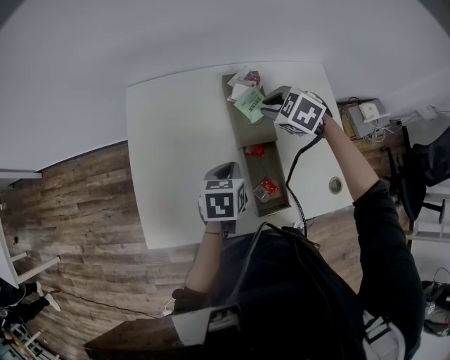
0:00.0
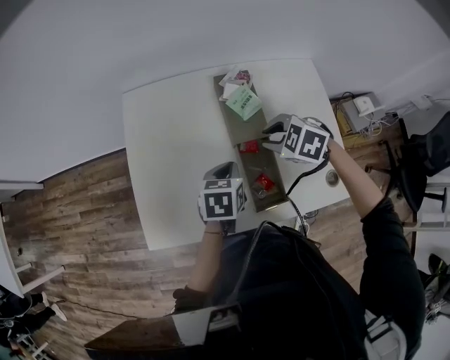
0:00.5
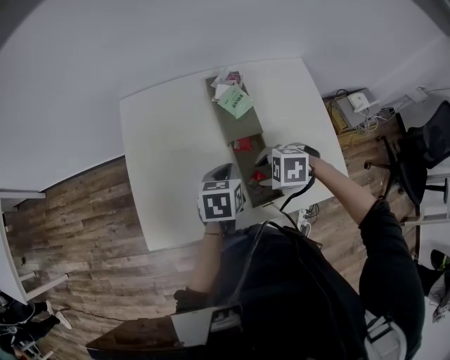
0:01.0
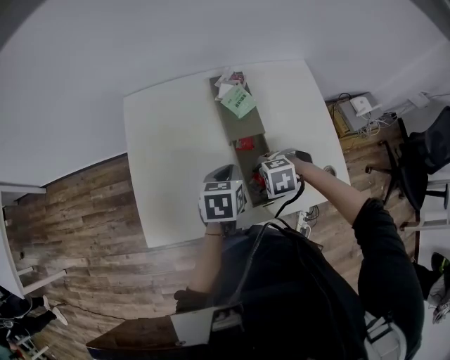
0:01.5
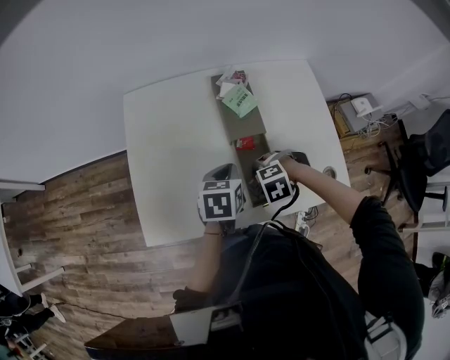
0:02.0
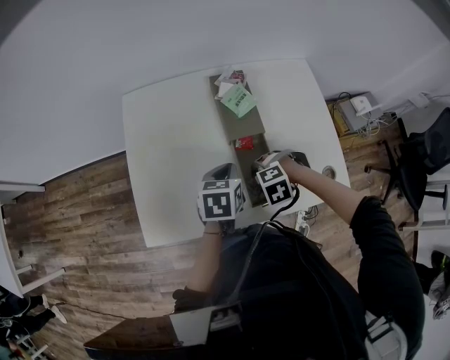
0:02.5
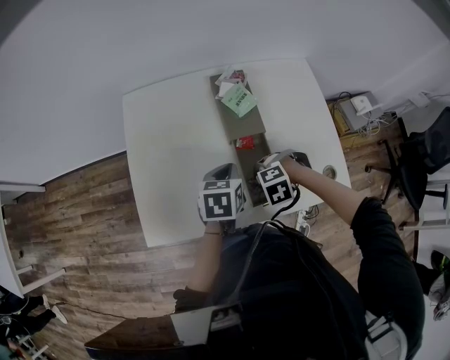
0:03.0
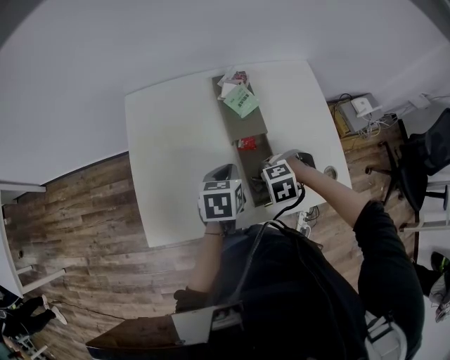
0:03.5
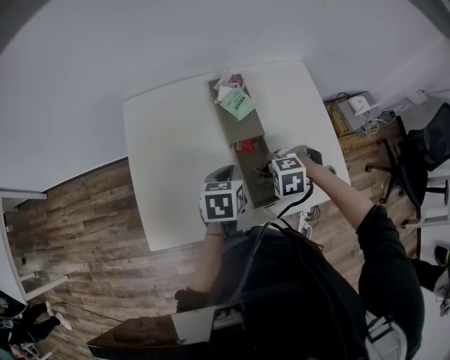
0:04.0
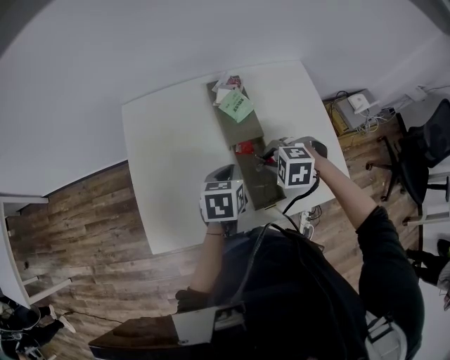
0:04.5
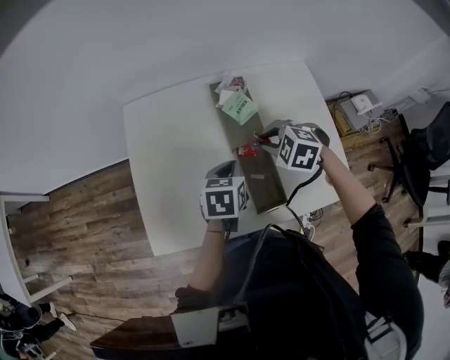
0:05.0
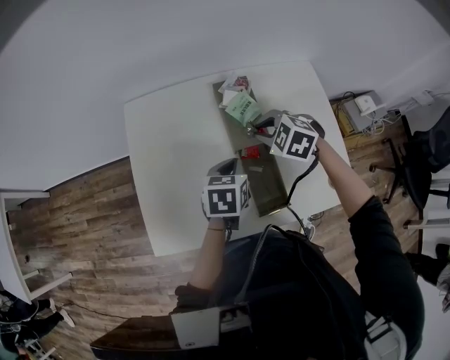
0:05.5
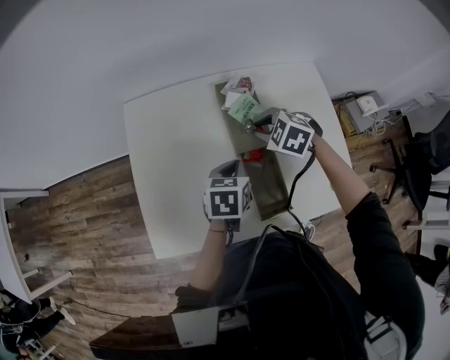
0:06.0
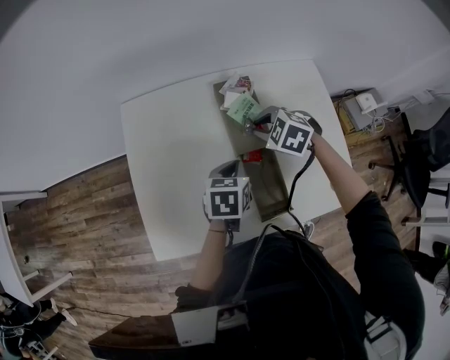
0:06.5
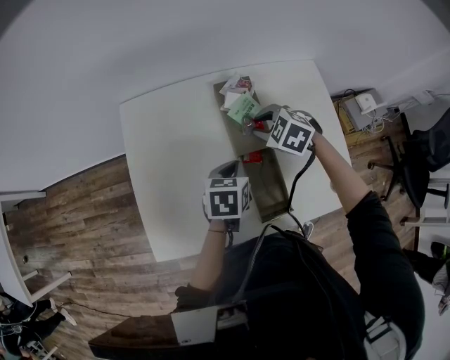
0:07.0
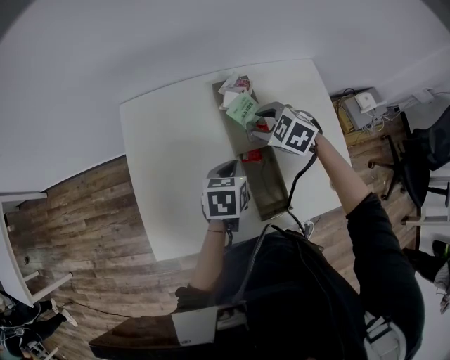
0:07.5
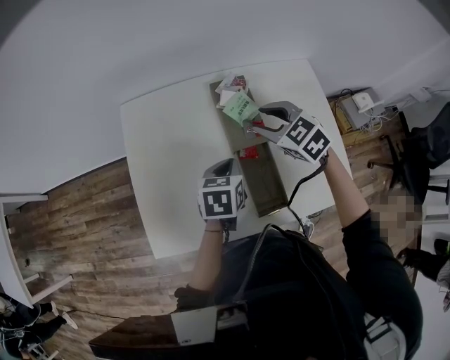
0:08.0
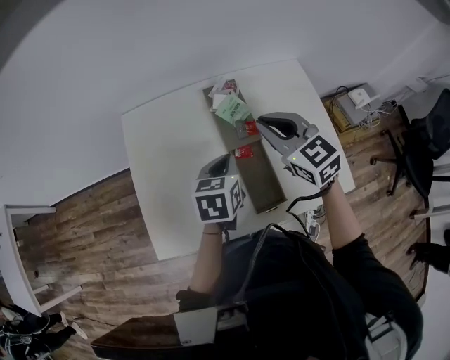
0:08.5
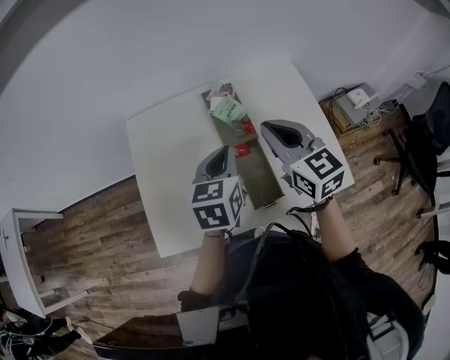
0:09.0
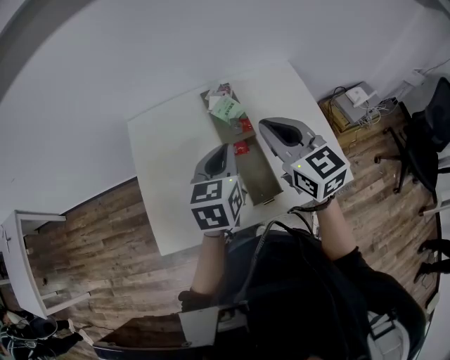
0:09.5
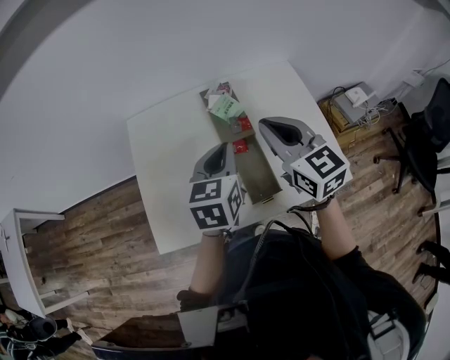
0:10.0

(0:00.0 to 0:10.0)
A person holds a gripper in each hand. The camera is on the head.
0:00.0 - 0:02.0: The right gripper changes place by roughly 30 cm, turns by about 40 degrees, and opens.
0:02.0 - 0:04.0: The right gripper moves roughly 5 cm, and closes.
0:04.0 - 0:06.0: The right gripper shifts by roughly 20 cm, and turns by about 30 degrees; the left gripper changes place by roughly 5 cm.
0:06.0 - 0:08.0: The right gripper is displaced upward by approximately 5 cm, turns by some 20 degrees, and opens up.
0:08.0 - 0:10.0: The right gripper shifts some 20 cm upward and backward, tilts its fingers roughly 30 degrees upward, and closes up; the left gripper heads upward, covering some 15 cm, and changes its angle by approximately 20 degrees.

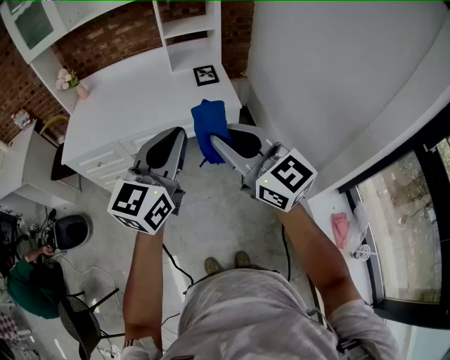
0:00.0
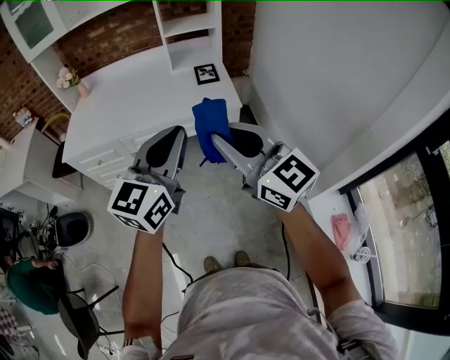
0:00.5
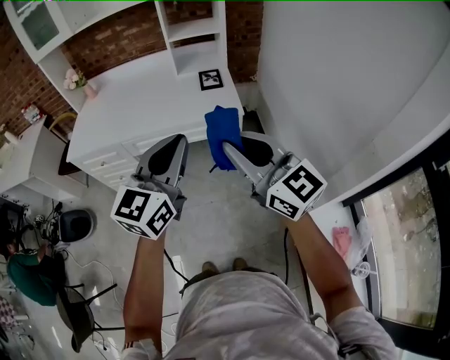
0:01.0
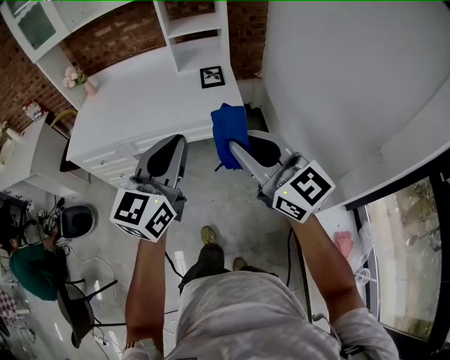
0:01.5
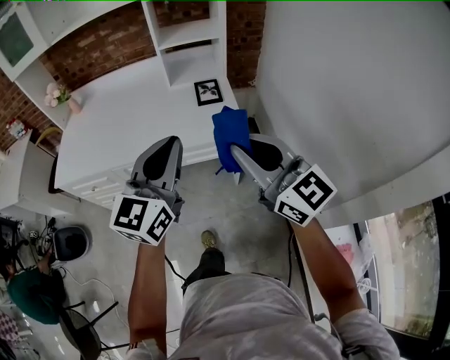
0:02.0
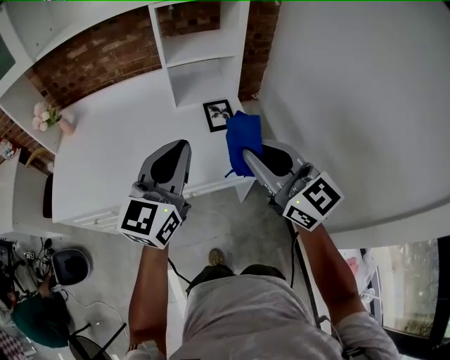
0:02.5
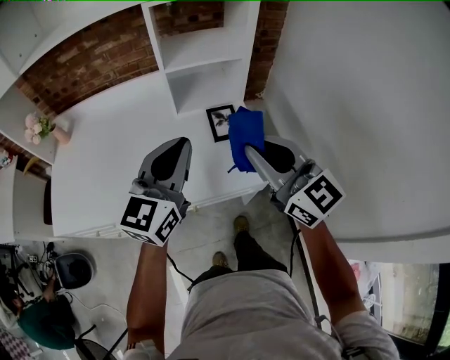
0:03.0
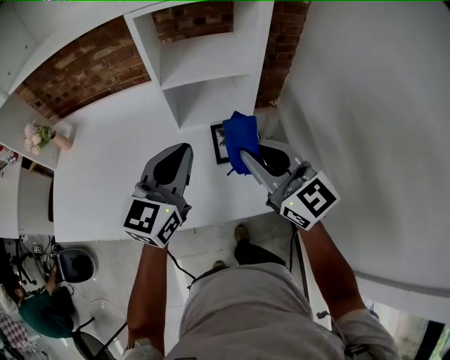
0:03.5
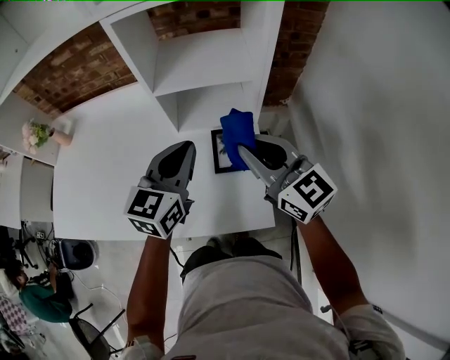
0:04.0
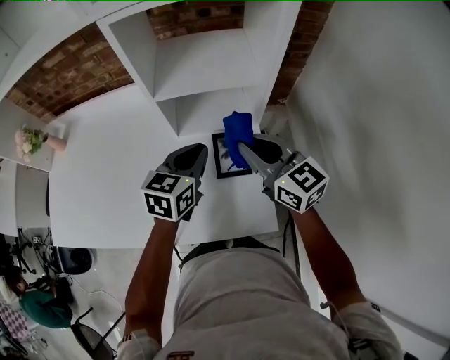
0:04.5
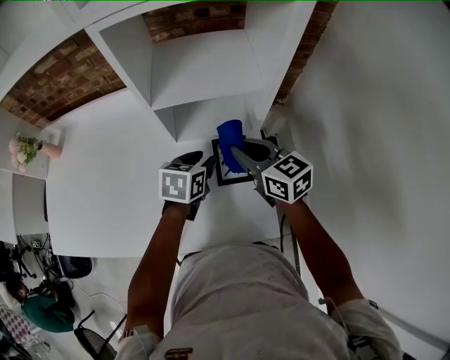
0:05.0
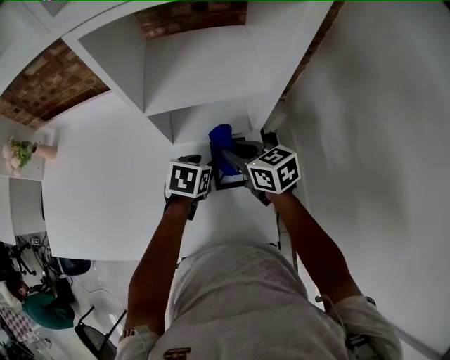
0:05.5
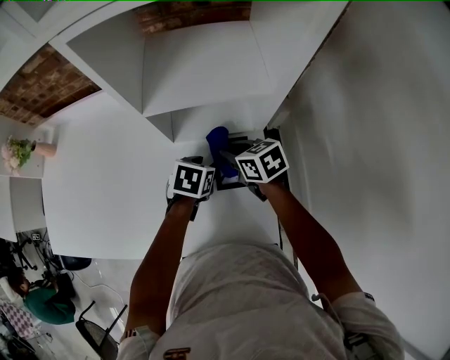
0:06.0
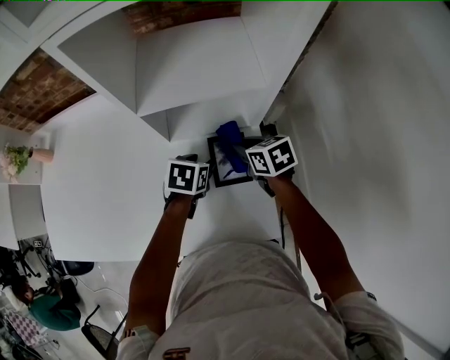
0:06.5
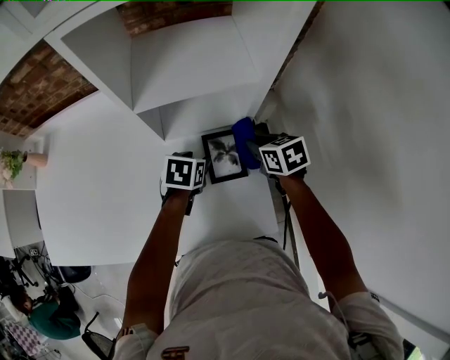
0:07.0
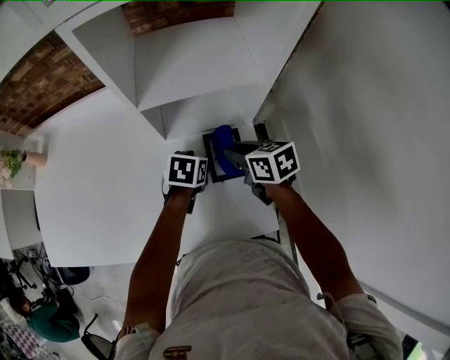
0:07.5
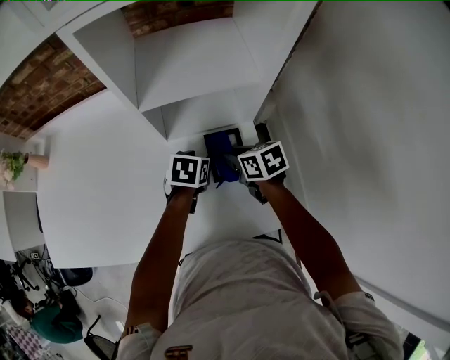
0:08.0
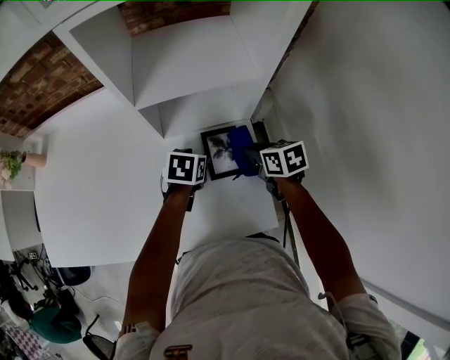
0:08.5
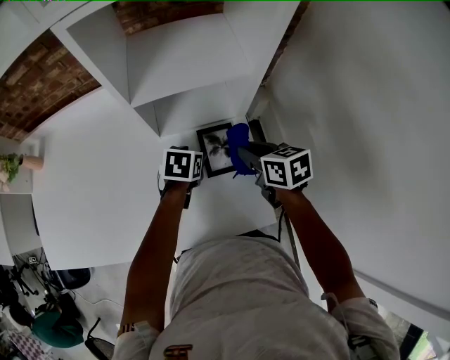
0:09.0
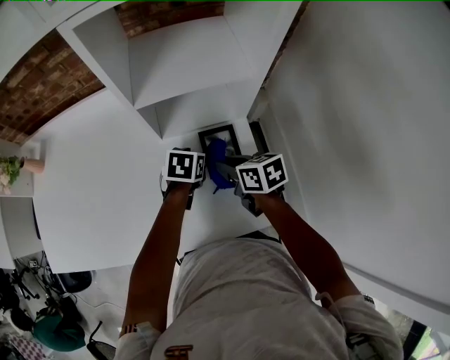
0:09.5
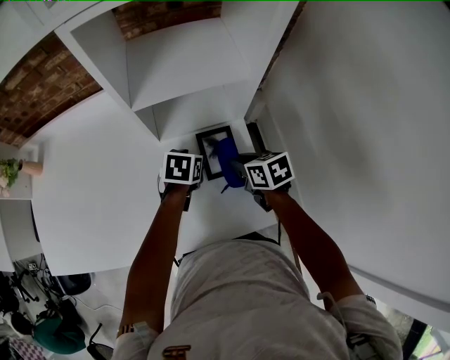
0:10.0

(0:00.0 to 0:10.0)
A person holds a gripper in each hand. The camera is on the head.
0:00.0 - 0:02.0: The right gripper heads forward and to the right, covering about 15 cm; the left gripper goes roughly 15 cm forward.
0:02.0 - 0:04.0: The pair of grippers is taken forward, about 40 cm.
0:04.0 - 0:06.0: The right gripper is displaced downward and forward by roughly 25 cm, and tilts its fingers about 40 degrees downward, while the left gripper heads downward, covering approximately 25 cm, angles its fingers downward, by some 50 degrees, and opens up.
0:06.0 - 0:08.0: The right gripper goes to the right and returns, approximately 10 cm each way.
0:08.0 - 0:10.0: The right gripper swings left and right, roughly 10 cm each way, with 2 reversals.

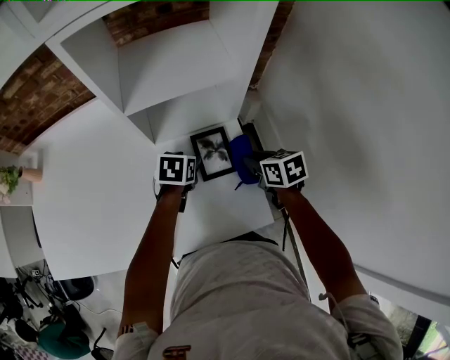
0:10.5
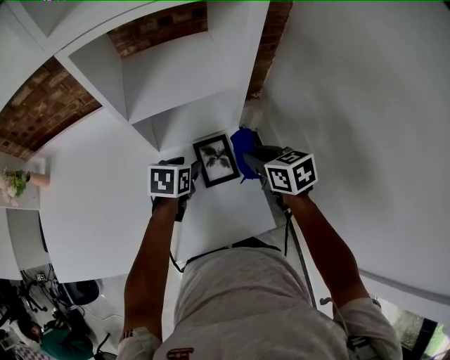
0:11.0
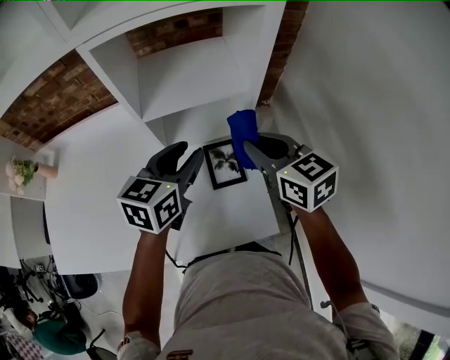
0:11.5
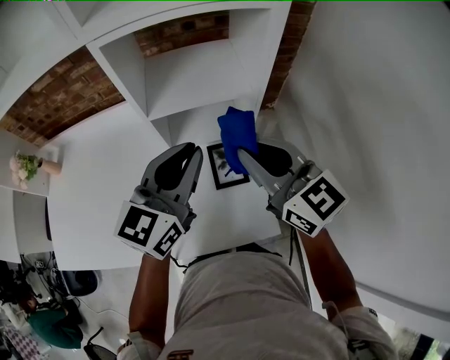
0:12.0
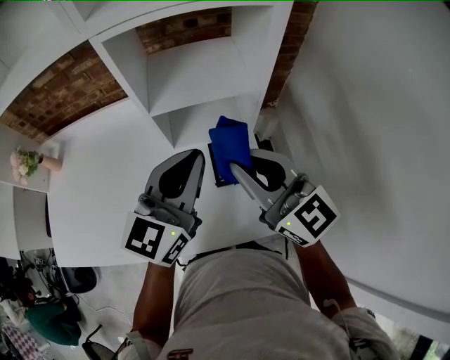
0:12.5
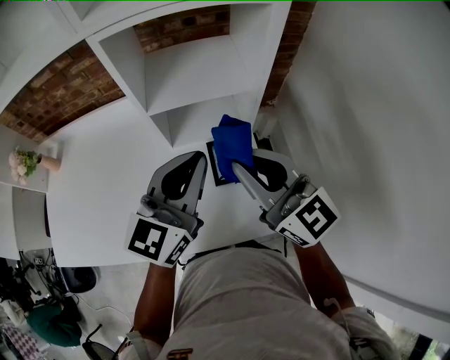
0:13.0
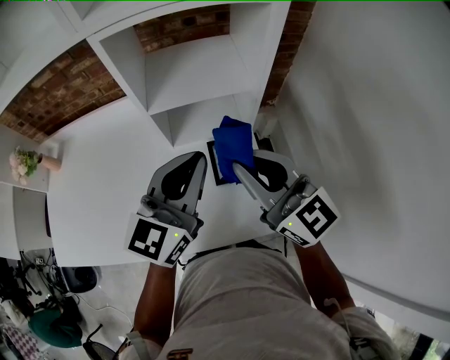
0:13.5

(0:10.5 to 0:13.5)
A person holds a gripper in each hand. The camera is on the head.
0:10.5 - 0:12.0: Both grippers travel together upward, some 30 cm. The right gripper points its fingers approximately 40 degrees further upward; the left gripper angles its fingers upward, by roughly 50 degrees, and closes.
0:12.0 - 0:13.5: The grippers make only small movements.

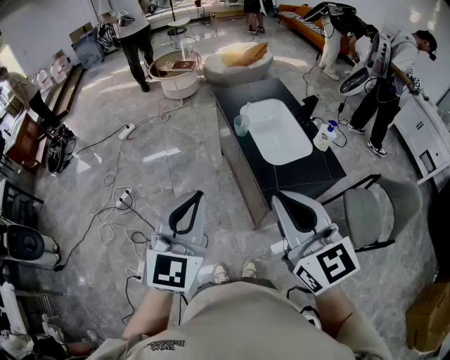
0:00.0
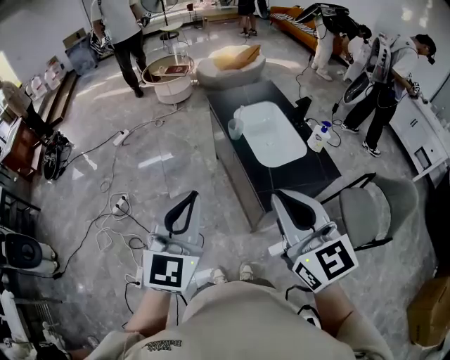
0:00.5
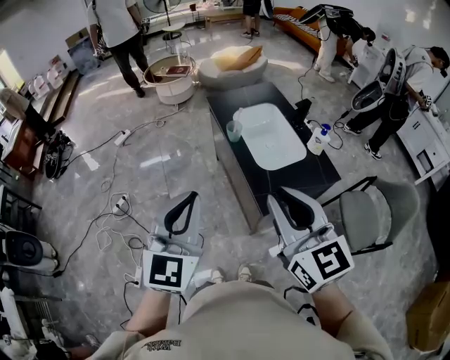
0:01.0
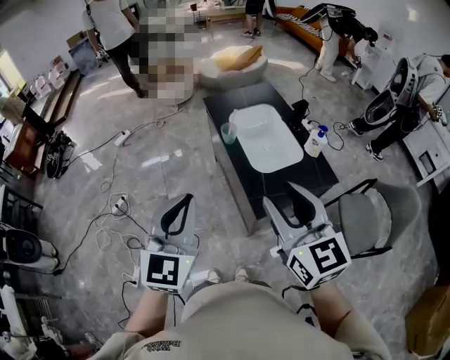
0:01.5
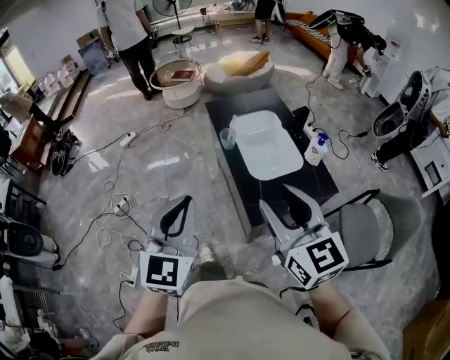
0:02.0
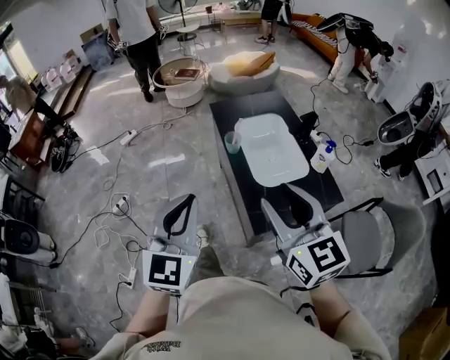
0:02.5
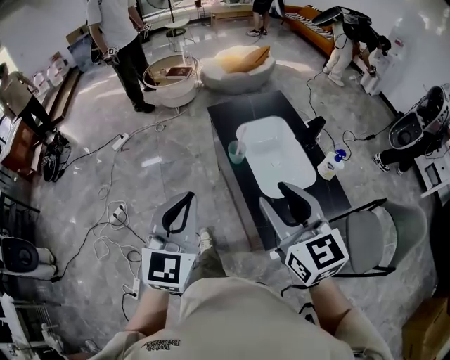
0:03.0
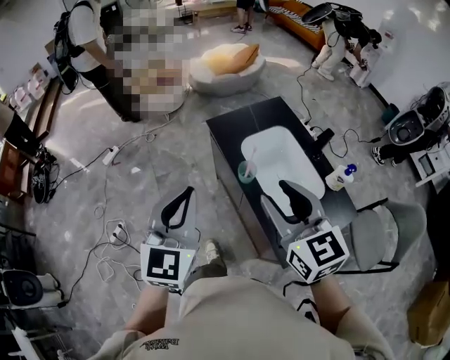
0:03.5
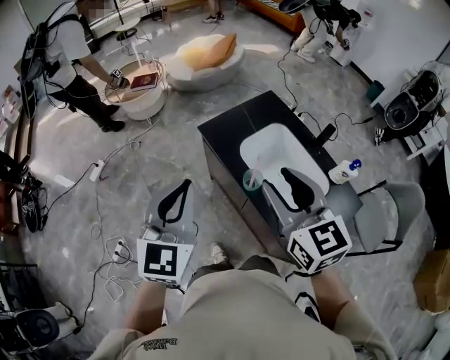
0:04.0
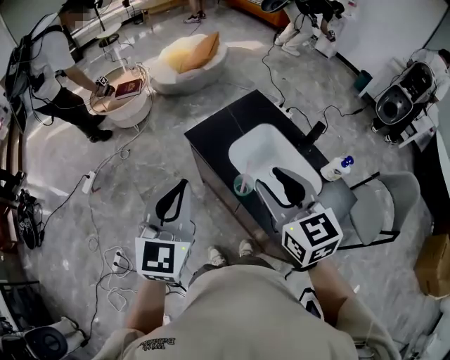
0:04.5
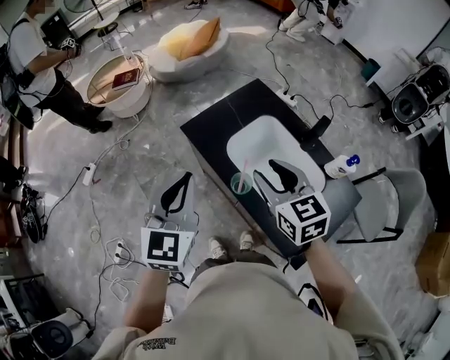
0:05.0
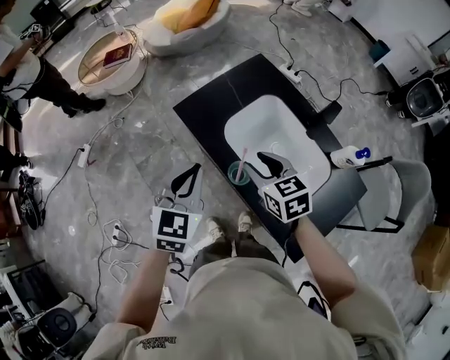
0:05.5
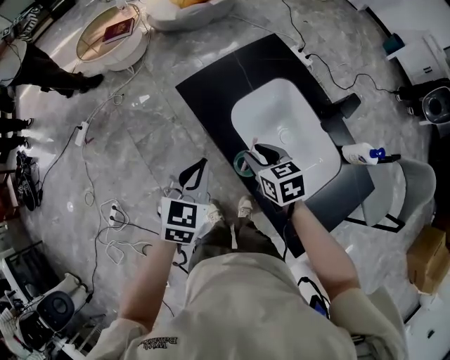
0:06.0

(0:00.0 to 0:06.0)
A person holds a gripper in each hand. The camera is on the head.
0:00.0 - 0:02.0: The right gripper heads to the right and forward, covering roughly 10 cm, and opens. The left gripper travels to the right by roughly 5 cm.
0:02.0 - 0:04.0: Both grippers move forward, some 35 cm.
0:04.0 - 0:06.0: Both grippers travel together downward and forward, some 30 cm. The right gripper tips its fingers downward by about 30 degrees; the left gripper turns by roughly 30 degrees.
